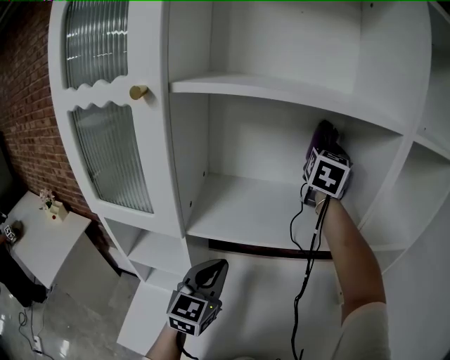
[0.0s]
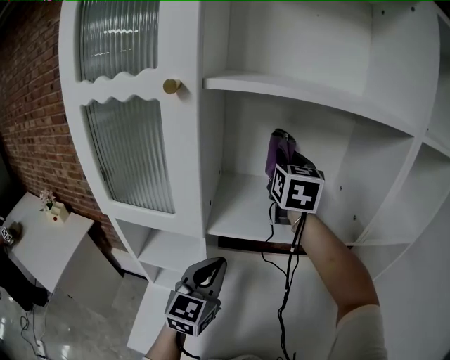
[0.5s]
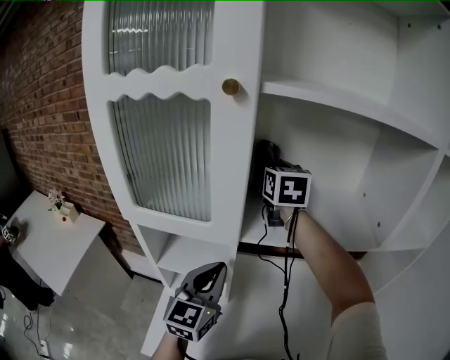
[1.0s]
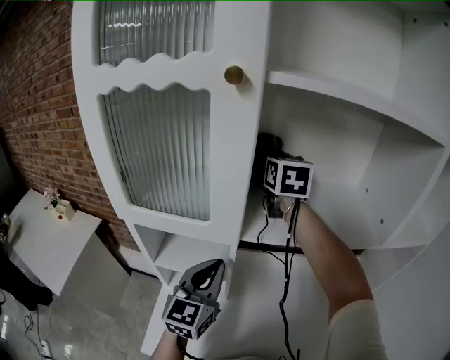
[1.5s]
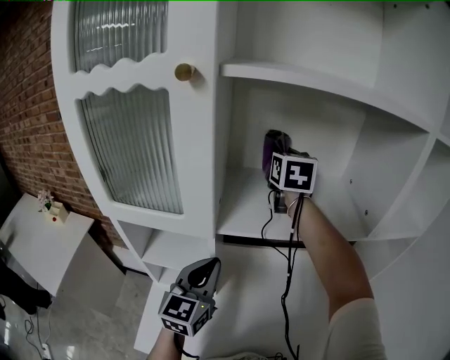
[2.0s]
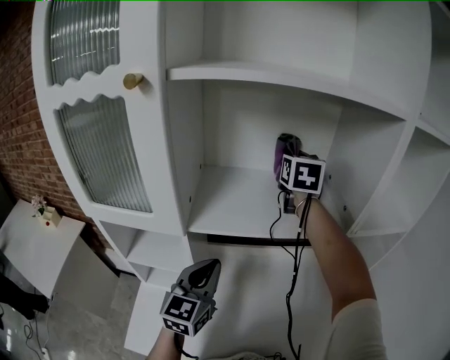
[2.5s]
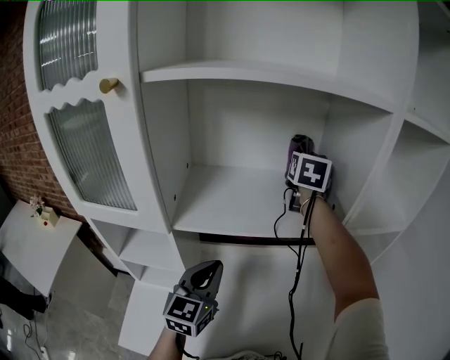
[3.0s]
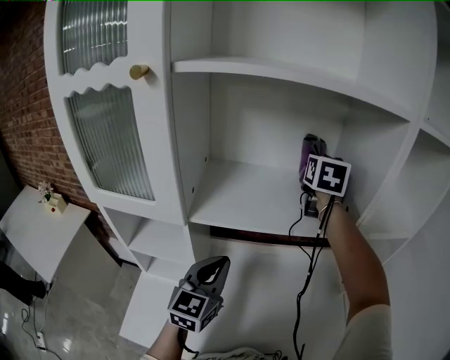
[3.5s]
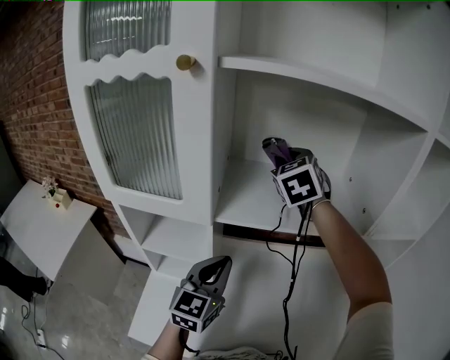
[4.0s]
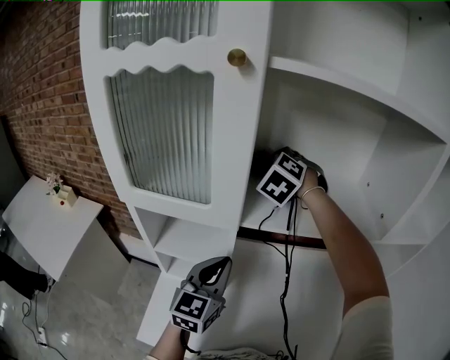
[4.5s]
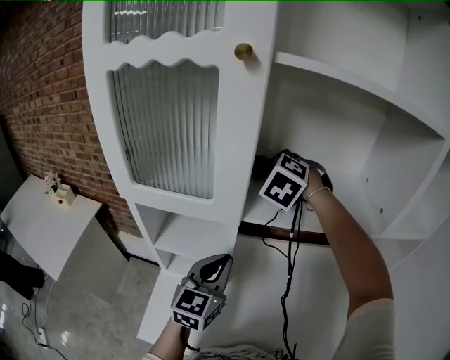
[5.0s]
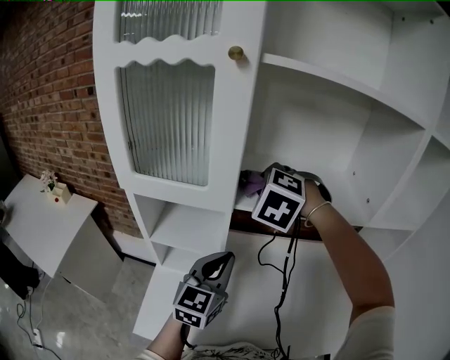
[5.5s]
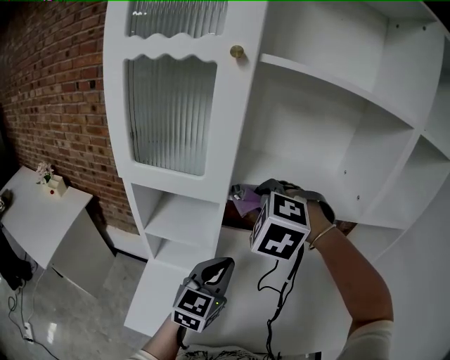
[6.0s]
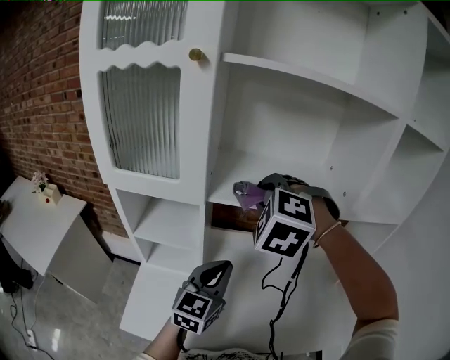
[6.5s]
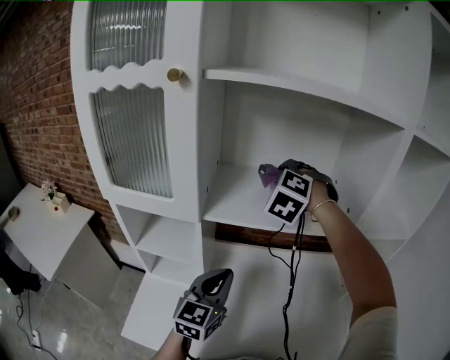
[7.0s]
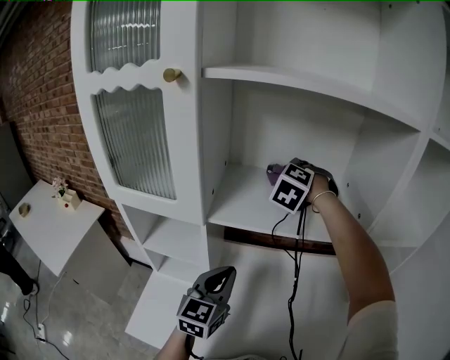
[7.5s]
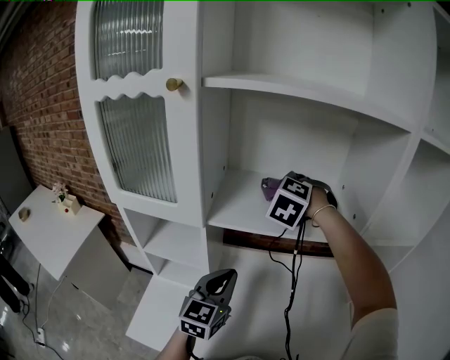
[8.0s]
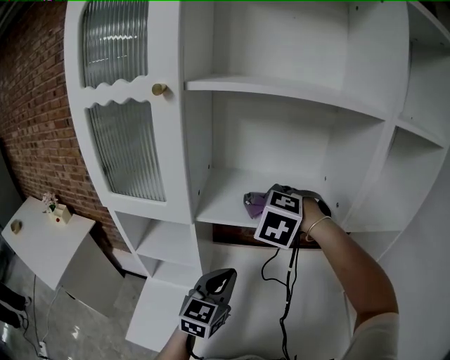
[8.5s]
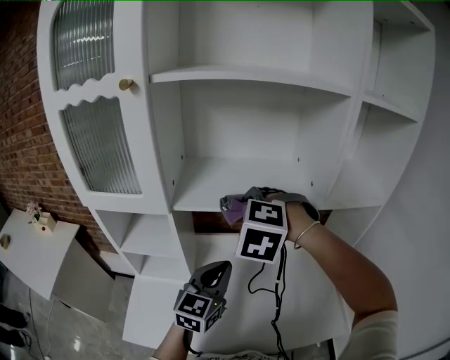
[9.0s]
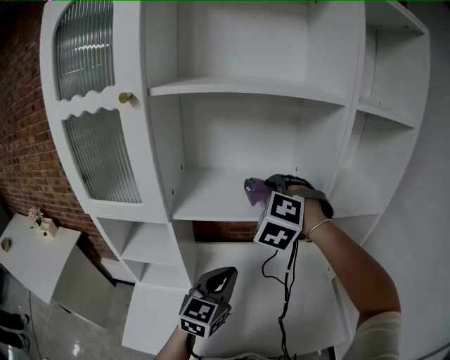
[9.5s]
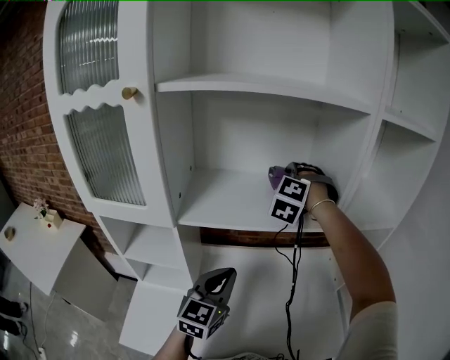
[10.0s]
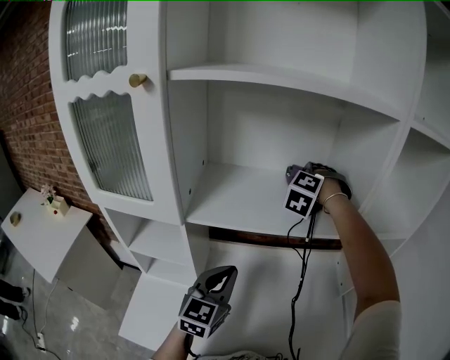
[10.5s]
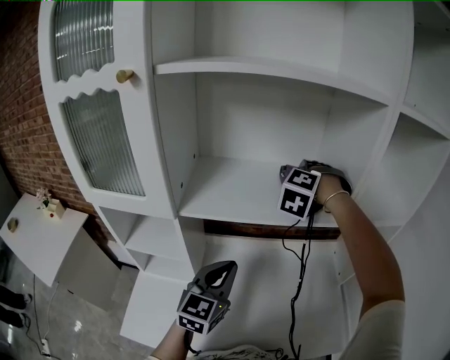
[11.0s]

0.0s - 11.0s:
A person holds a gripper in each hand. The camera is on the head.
0.0s - 2.0s: The left gripper travels to the left by approximately 10 cm, while the right gripper heads to the left and downward, covering about 20 cm, and swivels about 20 degrees.
2.0s - 3.5s: The left gripper travels to the right by some 10 cm. Meanwhile the right gripper moves to the right, roughly 15 cm.
3.5s - 5.5s: The right gripper goes about 30 cm to the left and backward, and twists roughly 70 degrees counterclockwise, seen from behind. The left gripper heads to the left, covering some 10 cm.
5.5s - 7.5s: The left gripper heads to the right, covering roughly 5 cm. The right gripper is displaced forward and to the right by roughly 20 cm.
7.5s - 9.0s: The right gripper travels backward by some 20 cm, while the left gripper goes roughly 5 cm to the right.
9.0s - 11.0s: The right gripper moves forward, approximately 20 cm, and rotates about 20 degrees.

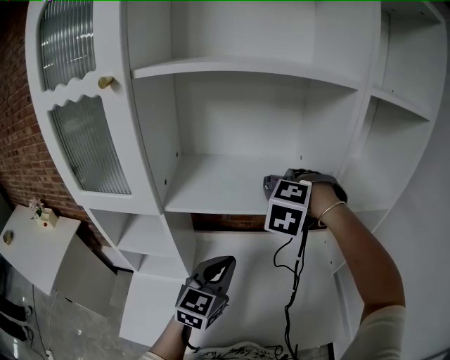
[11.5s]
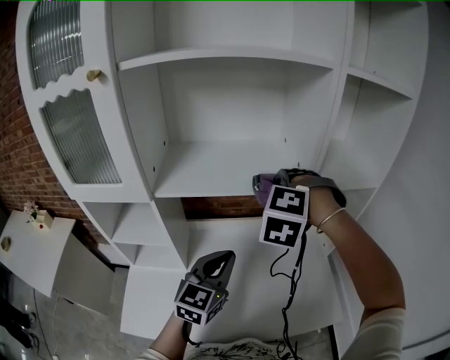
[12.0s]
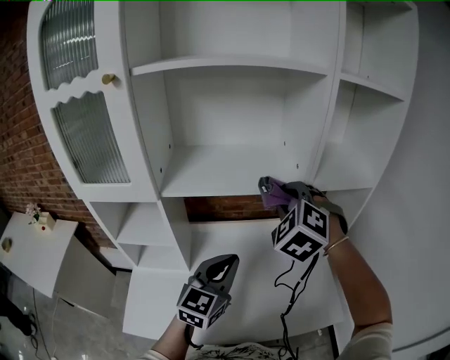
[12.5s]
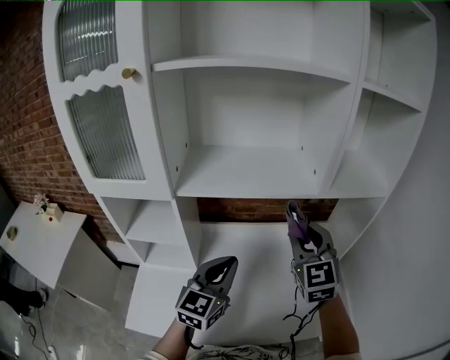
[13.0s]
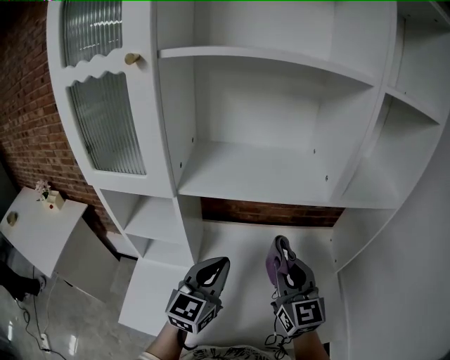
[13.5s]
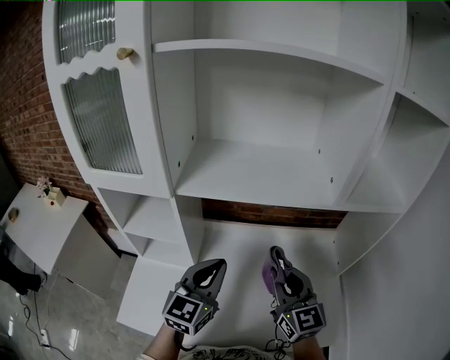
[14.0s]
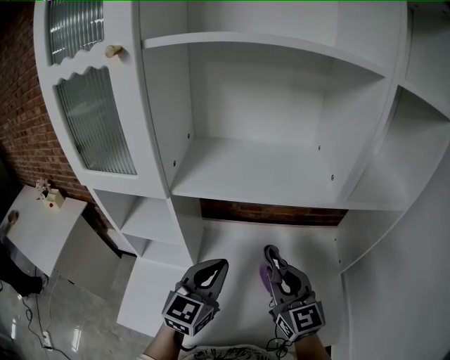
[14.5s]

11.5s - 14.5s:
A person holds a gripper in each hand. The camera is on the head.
11.5s - 13.0s: The right gripper is displaced backward and to the right by approximately 15 cm, and tips its fingers upward by approximately 40 degrees. The left gripper goes some 5 cm backward.
13.0s - 14.5s: The right gripper goes about 10 cm downward, and swivels roughly 20 degrees.

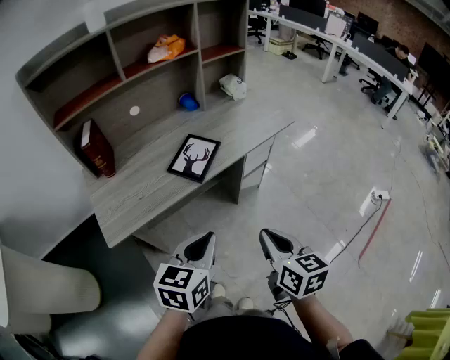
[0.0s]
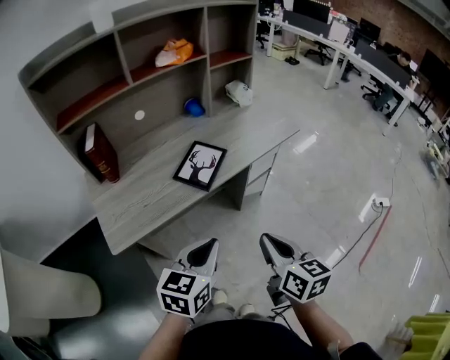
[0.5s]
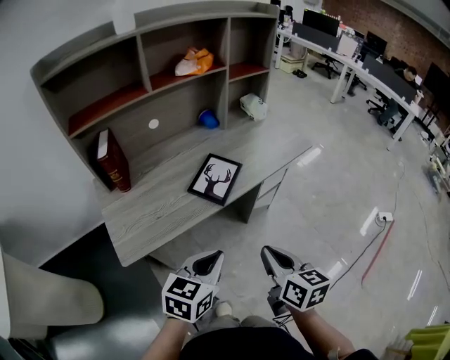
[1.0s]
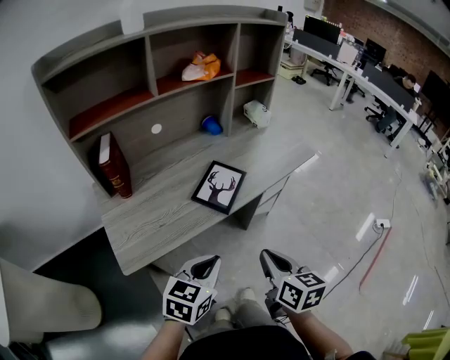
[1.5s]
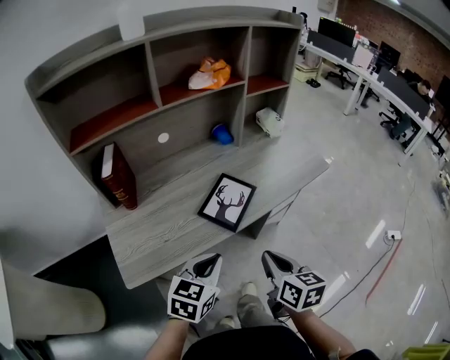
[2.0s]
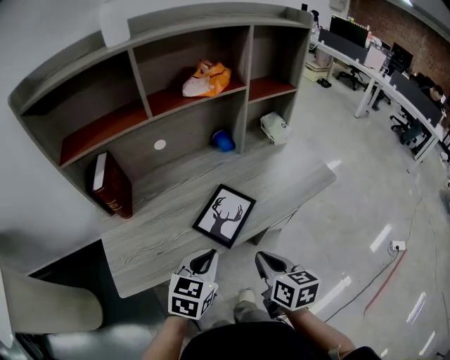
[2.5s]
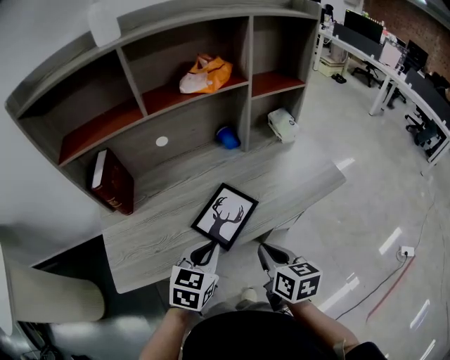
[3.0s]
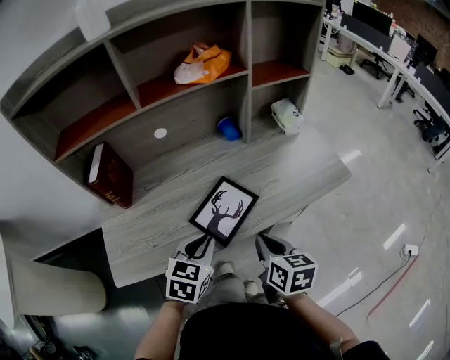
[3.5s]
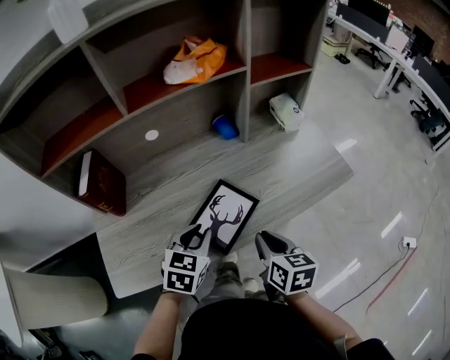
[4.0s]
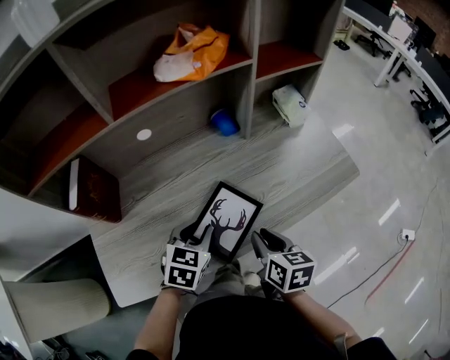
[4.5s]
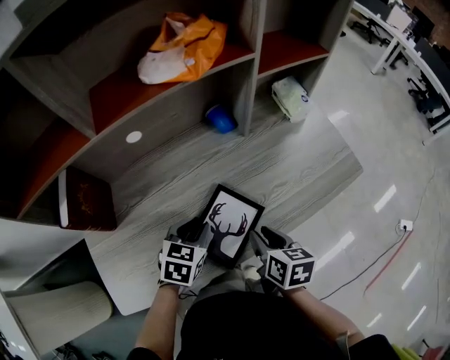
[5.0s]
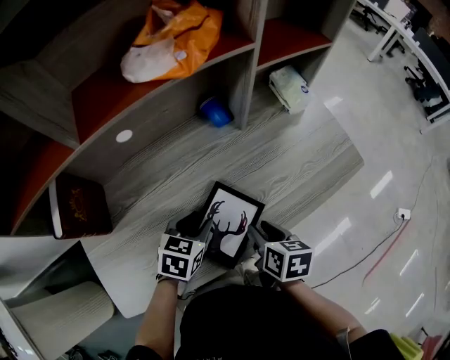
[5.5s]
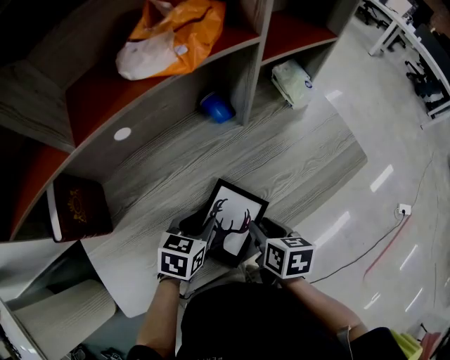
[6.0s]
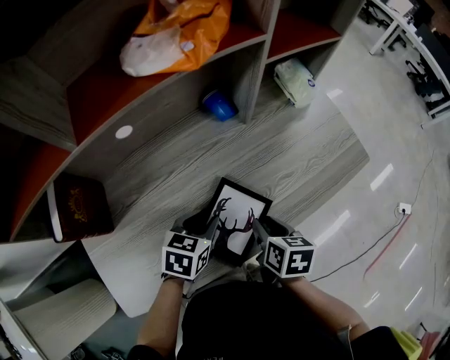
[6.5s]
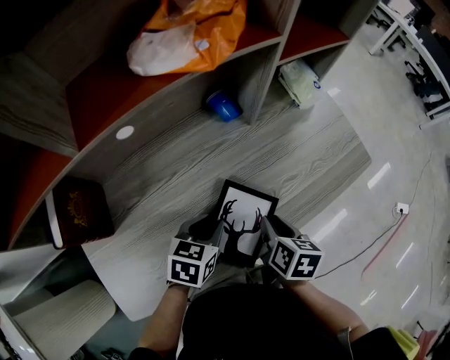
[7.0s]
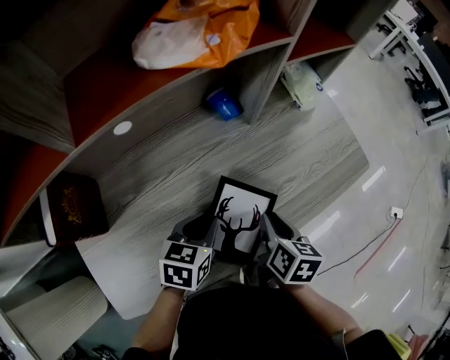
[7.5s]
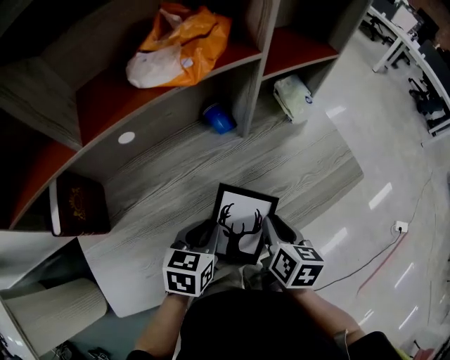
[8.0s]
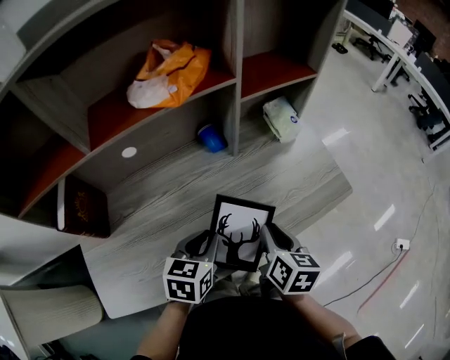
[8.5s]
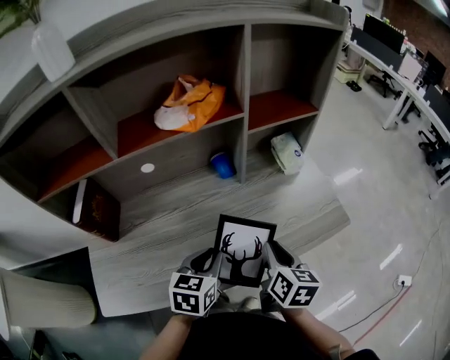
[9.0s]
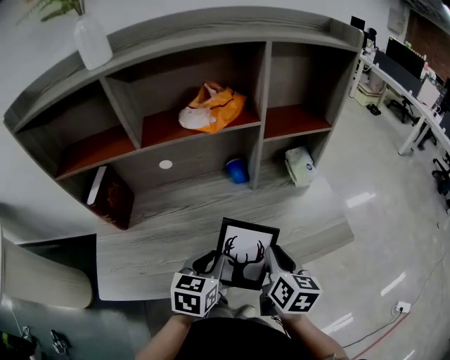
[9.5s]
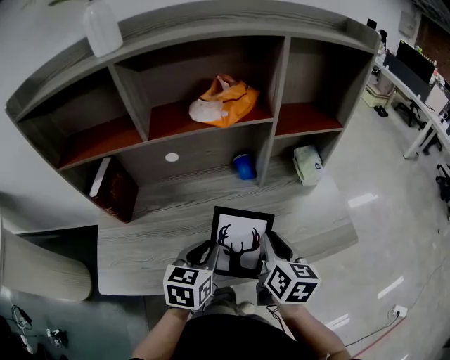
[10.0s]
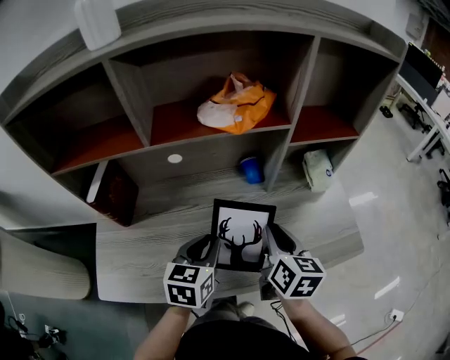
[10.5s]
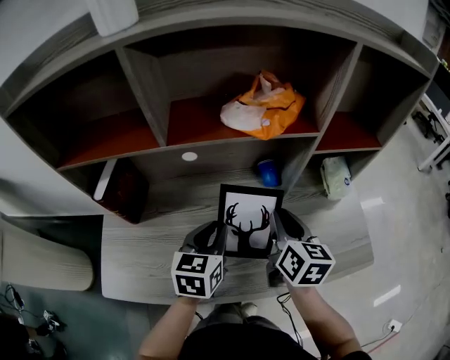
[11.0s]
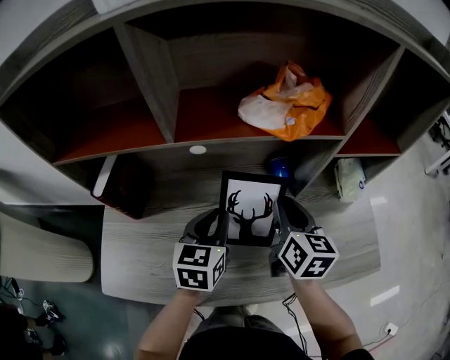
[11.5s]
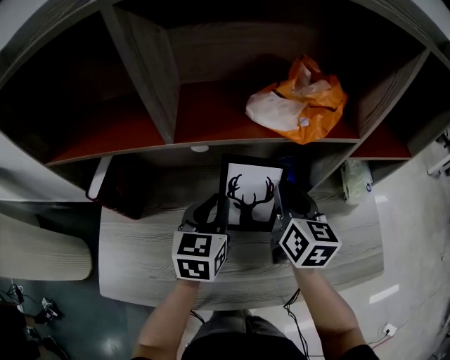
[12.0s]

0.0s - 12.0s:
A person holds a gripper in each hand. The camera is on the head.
0.0s - 2.0s: The two grippers go some 15 cm forward and to the left.
2.0s - 4.0s: The two grippers go about 20 cm forward.
4.0s - 6.0s: Both grippers move forward and downward, approximately 10 cm. The left gripper swivels roughly 20 degrees. The right gripper rotates approximately 20 degrees, and opens its fingers.
6.0s - 8.0s: The right gripper shifts by some 10 cm. The left gripper changes place by about 5 cm.
8.0s - 10.0s: The grippers both shift upward by about 10 cm. The right gripper changes its angle by about 20 degrees. Meanwhile the left gripper swivels roughly 20 degrees.
10.0s - 12.0s: The grippers both shift forward and to the left by approximately 20 cm.

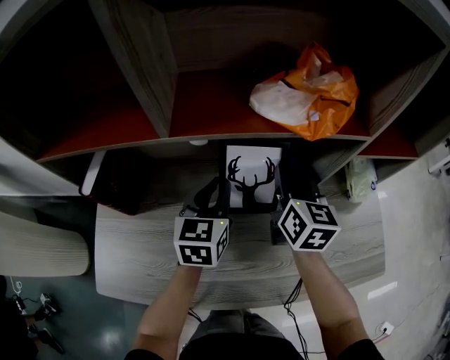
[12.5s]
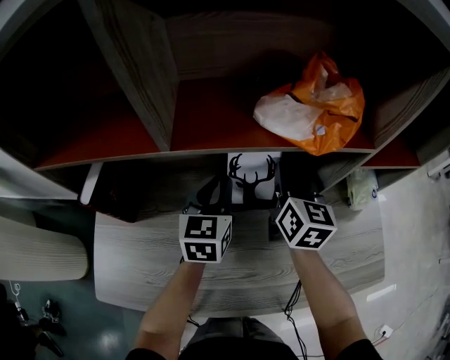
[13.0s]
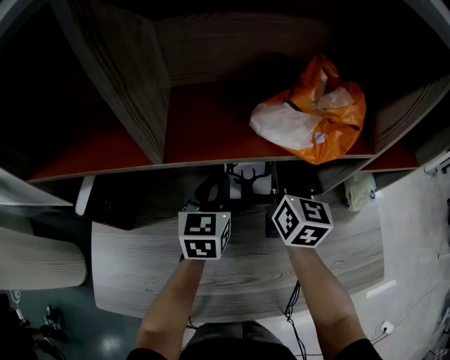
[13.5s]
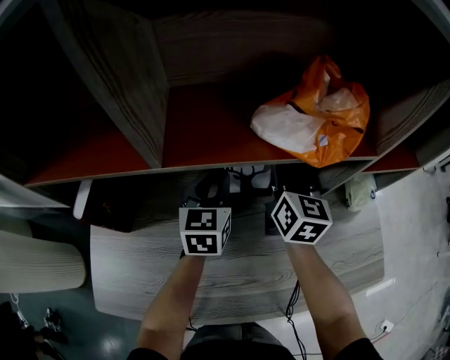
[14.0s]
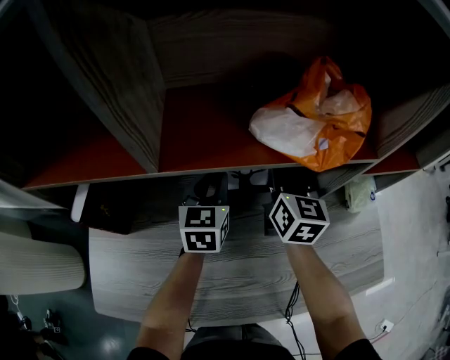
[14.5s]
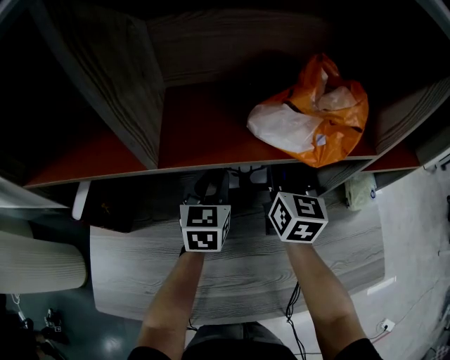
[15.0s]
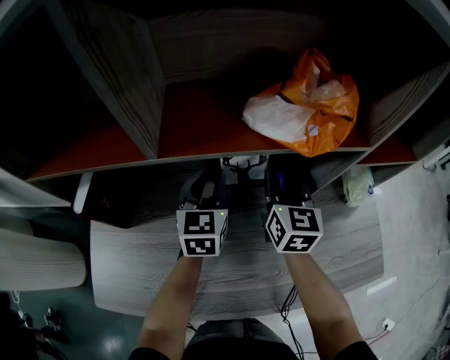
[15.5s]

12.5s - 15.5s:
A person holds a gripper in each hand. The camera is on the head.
12.5s - 14.0s: The two grippers go about 5 cm forward.
14.0s - 15.5s: The grippers make only small movements.
